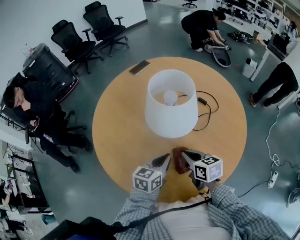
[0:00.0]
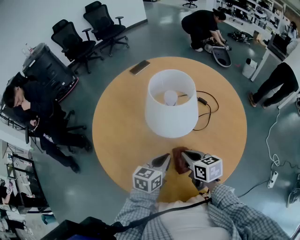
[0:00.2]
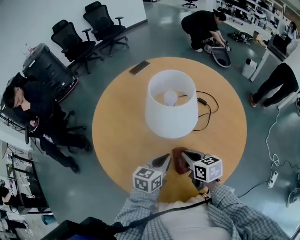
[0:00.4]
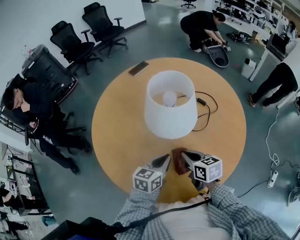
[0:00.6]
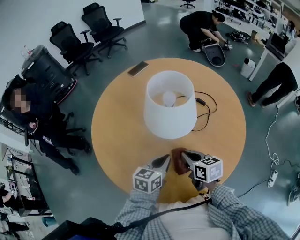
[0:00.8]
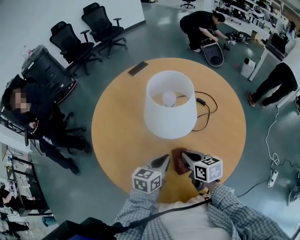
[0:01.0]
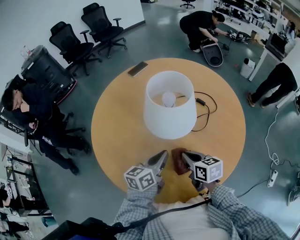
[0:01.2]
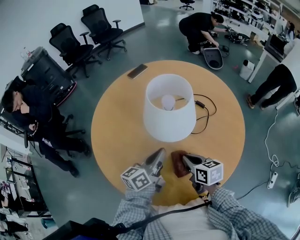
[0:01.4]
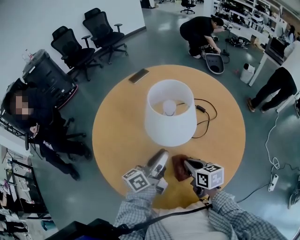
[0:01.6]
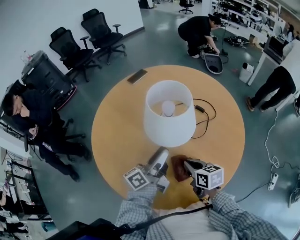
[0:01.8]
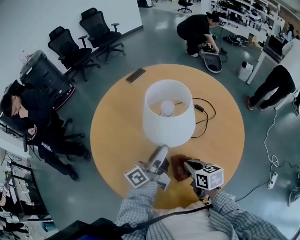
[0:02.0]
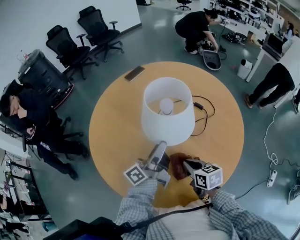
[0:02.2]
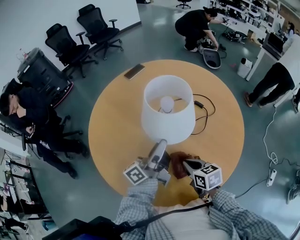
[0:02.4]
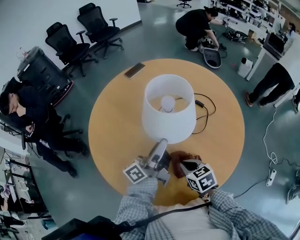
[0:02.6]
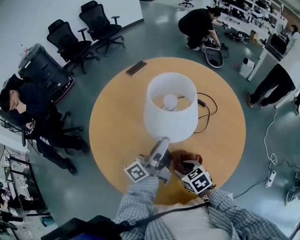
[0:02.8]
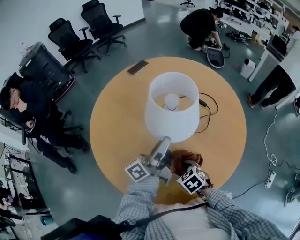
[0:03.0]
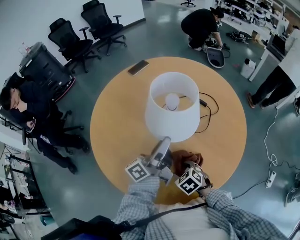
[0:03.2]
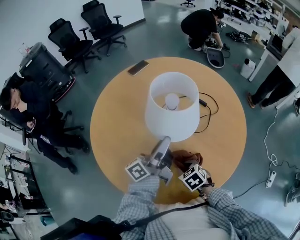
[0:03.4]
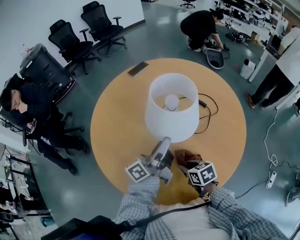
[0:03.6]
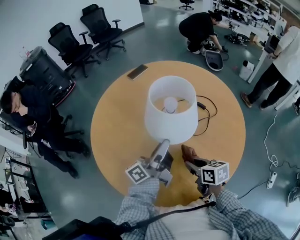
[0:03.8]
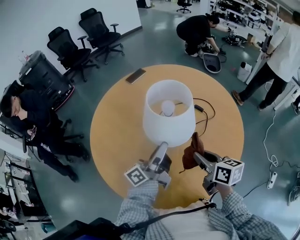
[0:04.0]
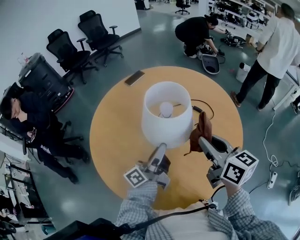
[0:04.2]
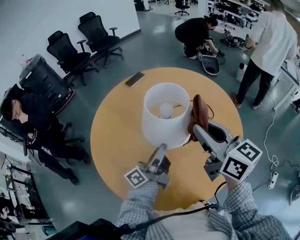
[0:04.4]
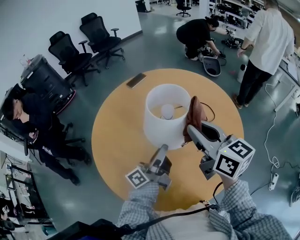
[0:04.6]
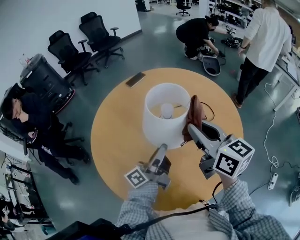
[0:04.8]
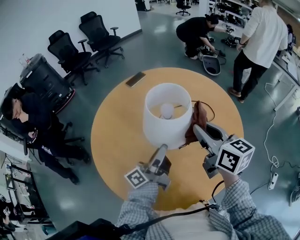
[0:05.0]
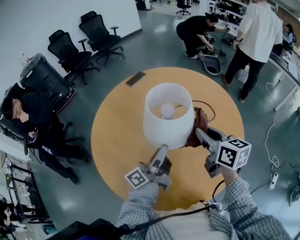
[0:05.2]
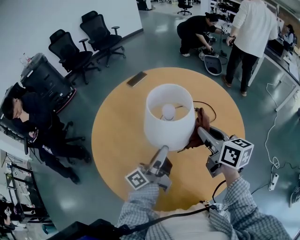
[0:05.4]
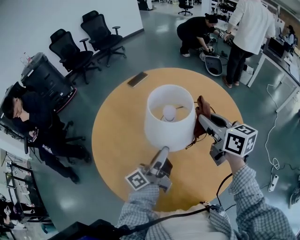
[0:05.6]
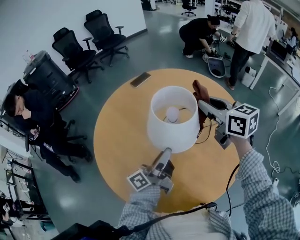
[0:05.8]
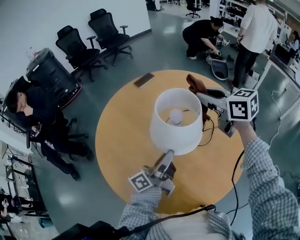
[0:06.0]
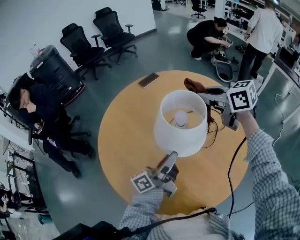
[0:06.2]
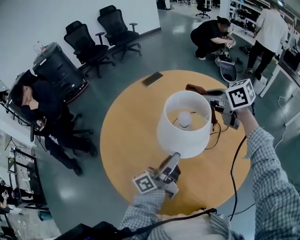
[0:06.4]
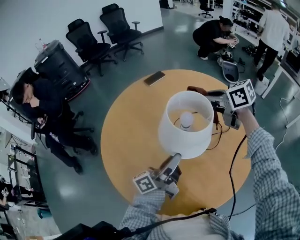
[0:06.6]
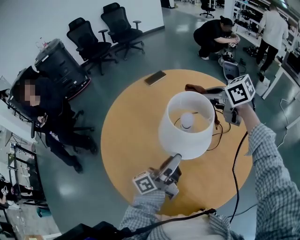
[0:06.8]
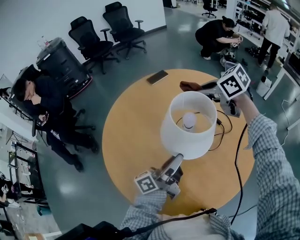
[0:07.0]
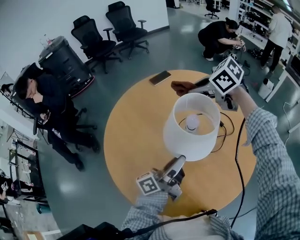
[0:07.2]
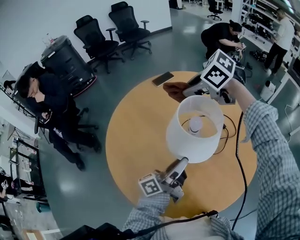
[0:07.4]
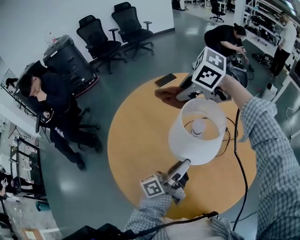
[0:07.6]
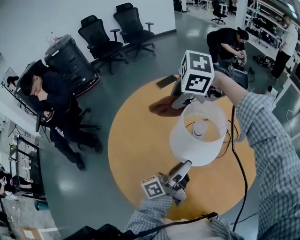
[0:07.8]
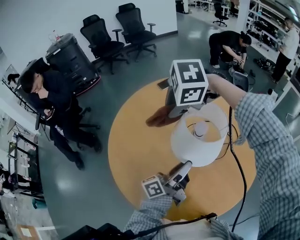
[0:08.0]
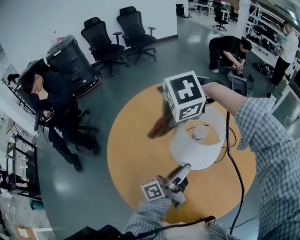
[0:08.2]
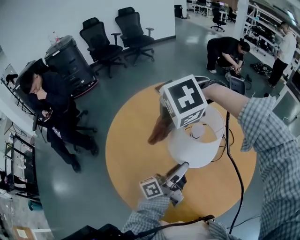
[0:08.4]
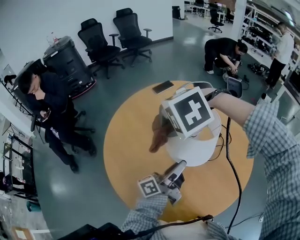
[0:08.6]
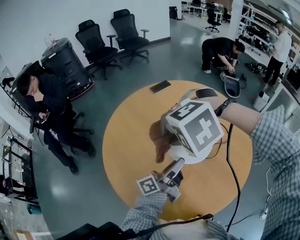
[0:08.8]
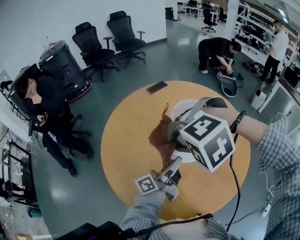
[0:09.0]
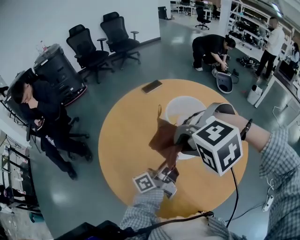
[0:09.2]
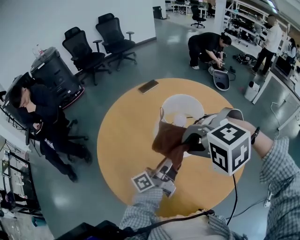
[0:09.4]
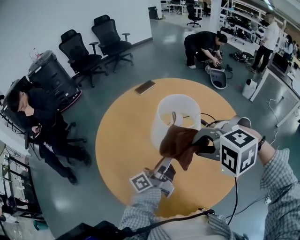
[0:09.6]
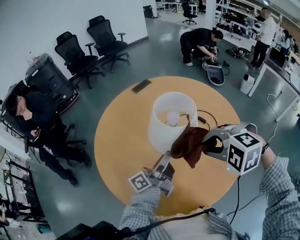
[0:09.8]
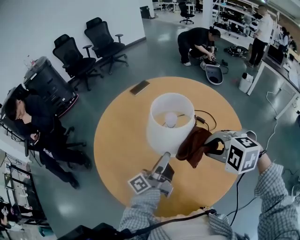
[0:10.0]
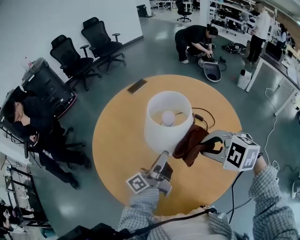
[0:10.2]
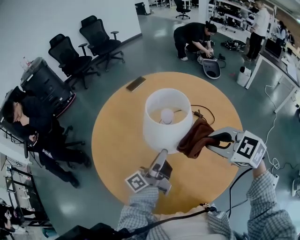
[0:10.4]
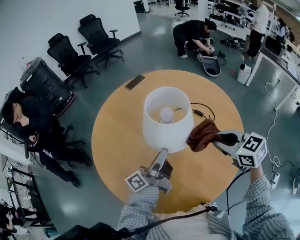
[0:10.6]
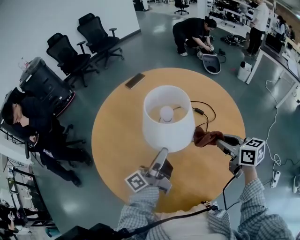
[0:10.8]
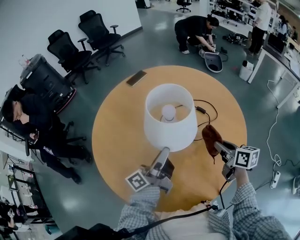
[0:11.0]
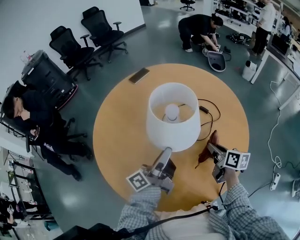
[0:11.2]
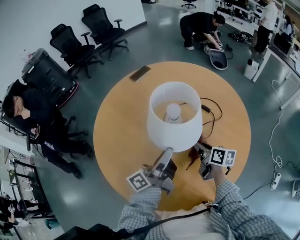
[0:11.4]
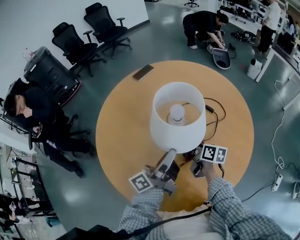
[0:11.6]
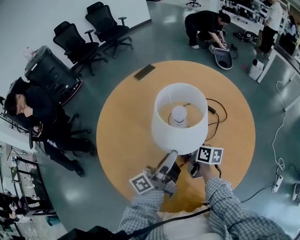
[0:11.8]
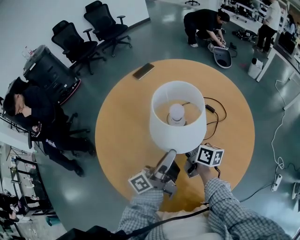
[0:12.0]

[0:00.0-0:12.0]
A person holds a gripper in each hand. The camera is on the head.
0:00.0 to 0:01.6: The left gripper is displaced upward by approximately 10 cm, tilts its fingers roughly 30 degrees upward, and opens up.
0:01.6 to 0:03.0: The right gripper travels downward by roughly 5 cm, swivels some 40 degrees, and opens. The left gripper changes its angle by approximately 20 degrees, and opens, then closes once more.
0:03.0 to 0:04.4: The right gripper travels upward by some 35 cm, points its fingers roughly 60 degrees further upward, and closes.
0:04.4 to 0:06.0: The right gripper shifts about 15 cm forward, and turns by roughly 20 degrees.
0:06.0 to 0:07.6: The right gripper shifts by about 15 cm, and tilts its fingers roughly 30 degrees downward.
0:07.6 to 0:09.0: The right gripper changes place by roughly 20 cm, and twists about 60 degrees counterclockwise, seen from behind.
0:09.0 to 0:10.4: The right gripper is displaced to the right by about 20 cm, and twists about 70 degrees clockwise, seen from behind.
0:10.4 to 0:12.0: The right gripper moves downward, to the left and forward, roughly 20 cm, and rotates around the line of its fingers by some 70 degrees, clockwise from behind.

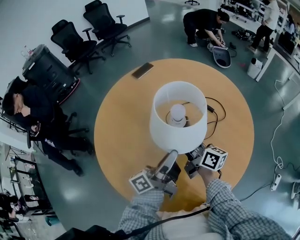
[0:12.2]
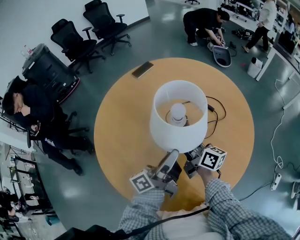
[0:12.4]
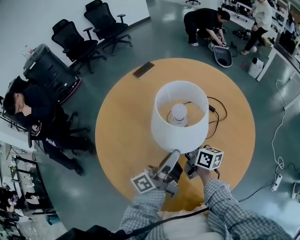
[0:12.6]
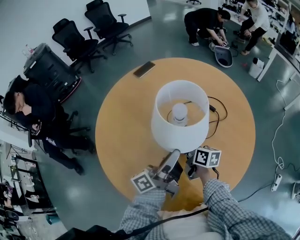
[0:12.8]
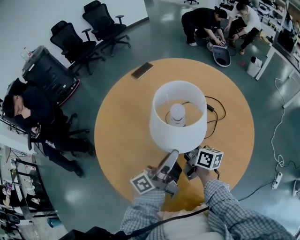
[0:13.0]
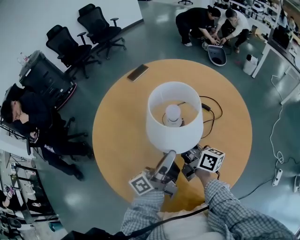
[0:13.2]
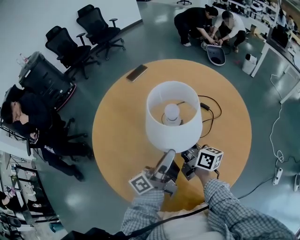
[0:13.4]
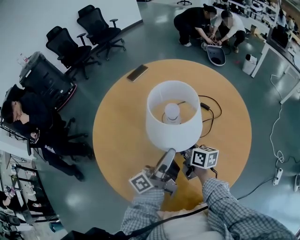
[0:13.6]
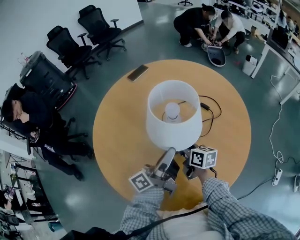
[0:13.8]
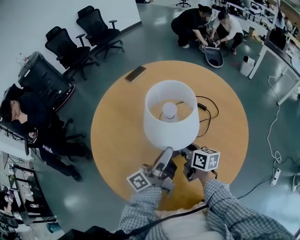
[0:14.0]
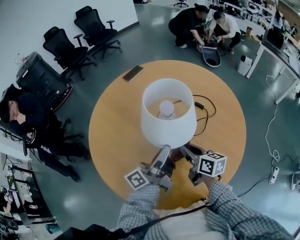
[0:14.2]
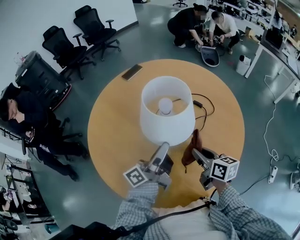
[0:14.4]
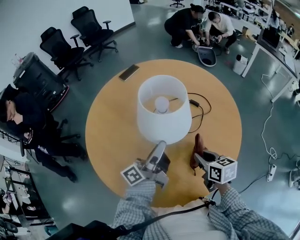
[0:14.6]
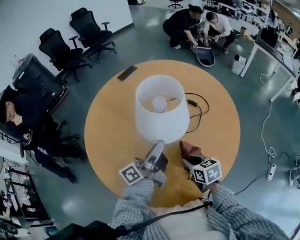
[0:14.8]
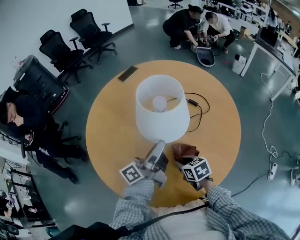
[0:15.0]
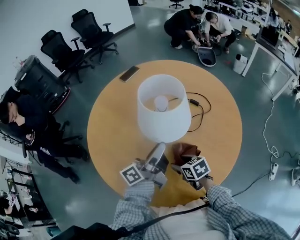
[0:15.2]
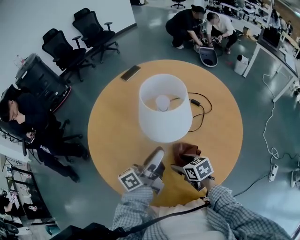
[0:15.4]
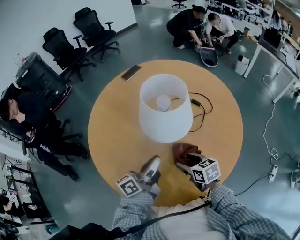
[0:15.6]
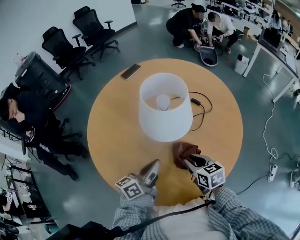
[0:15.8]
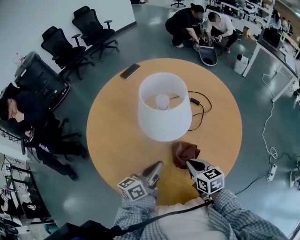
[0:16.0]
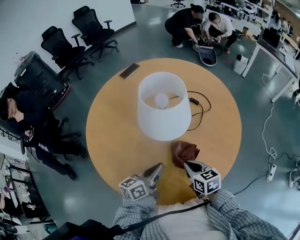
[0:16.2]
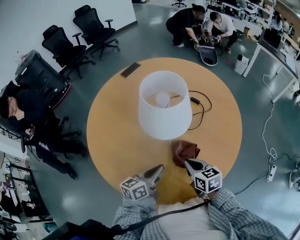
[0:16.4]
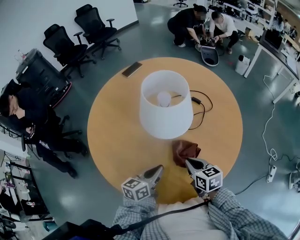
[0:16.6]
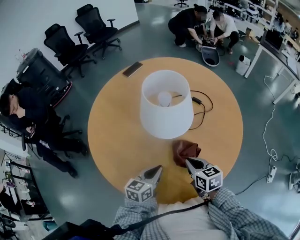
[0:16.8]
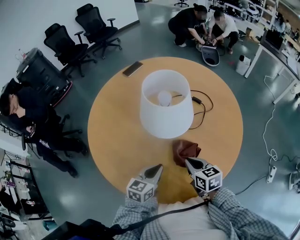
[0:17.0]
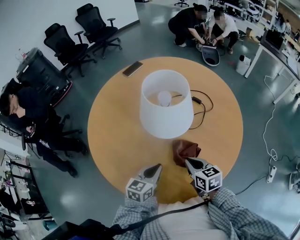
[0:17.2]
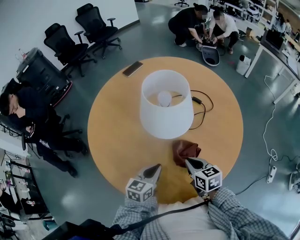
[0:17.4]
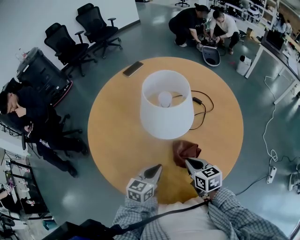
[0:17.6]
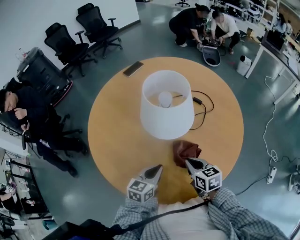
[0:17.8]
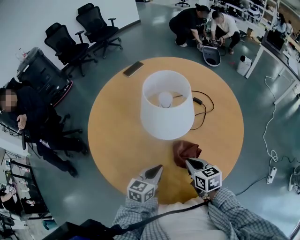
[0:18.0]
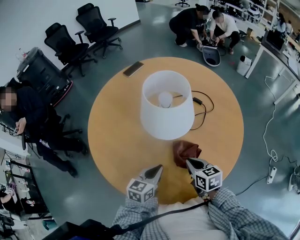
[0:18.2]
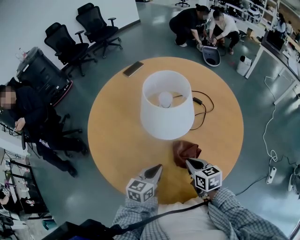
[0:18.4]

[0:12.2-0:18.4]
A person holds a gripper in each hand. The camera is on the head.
0:12.2 to 0:13.8: The right gripper swings up and down, about 10 cm each way, with 2 reversals, and rotates about 20 degrees.
0:13.8 to 0:15.4: The right gripper shifts about 10 cm backward, changes its angle by roughly 30 degrees, and opens.
0:15.4 to 0:16.8: The right gripper moves roughly 5 cm, and closes up. The left gripper is displaced downward and backward by approximately 15 cm, points its fingers some 40 degrees further downward, and closes its fingers.
0:16.8 to 0:18.4: There are only small adjustments of the grippers.

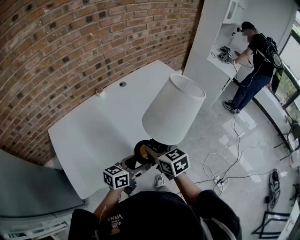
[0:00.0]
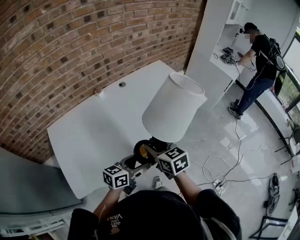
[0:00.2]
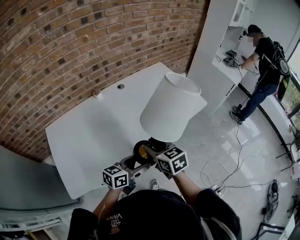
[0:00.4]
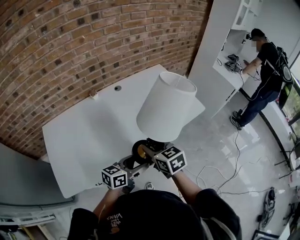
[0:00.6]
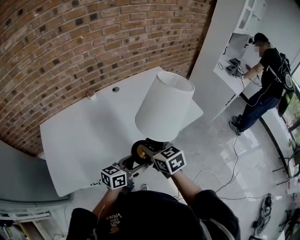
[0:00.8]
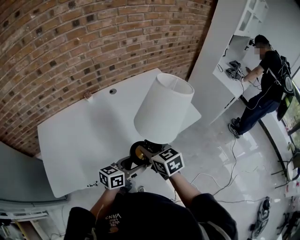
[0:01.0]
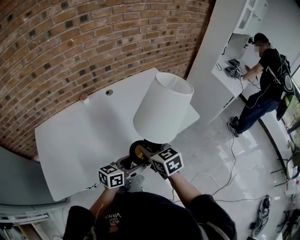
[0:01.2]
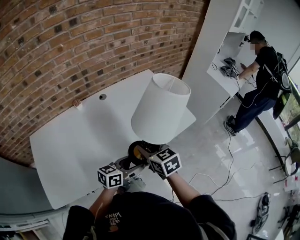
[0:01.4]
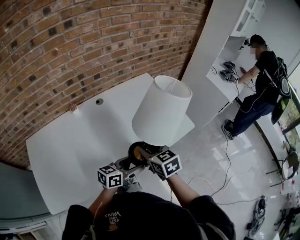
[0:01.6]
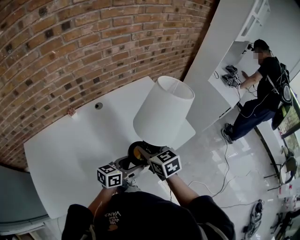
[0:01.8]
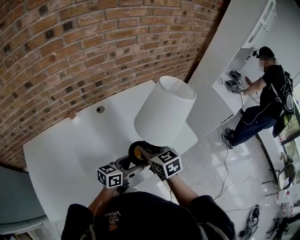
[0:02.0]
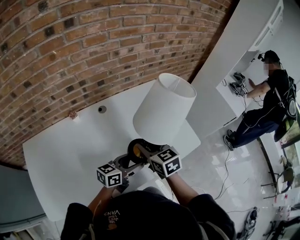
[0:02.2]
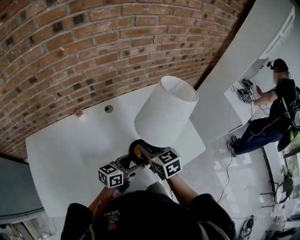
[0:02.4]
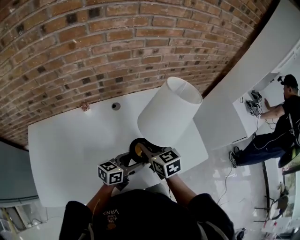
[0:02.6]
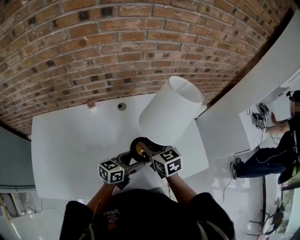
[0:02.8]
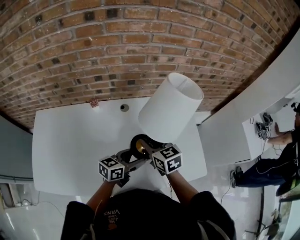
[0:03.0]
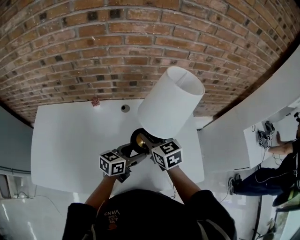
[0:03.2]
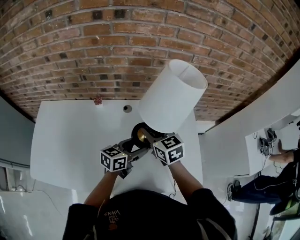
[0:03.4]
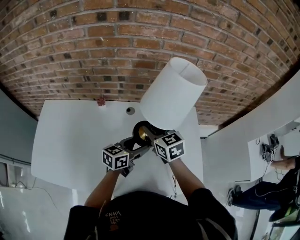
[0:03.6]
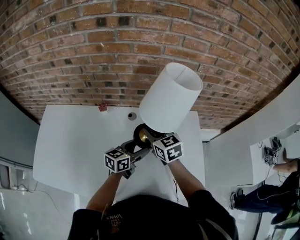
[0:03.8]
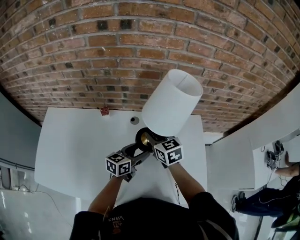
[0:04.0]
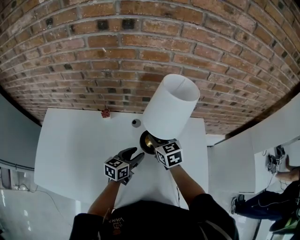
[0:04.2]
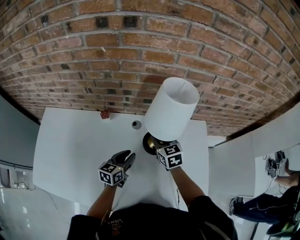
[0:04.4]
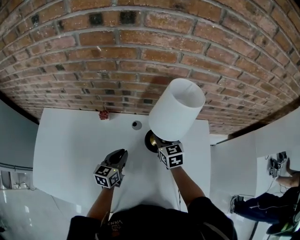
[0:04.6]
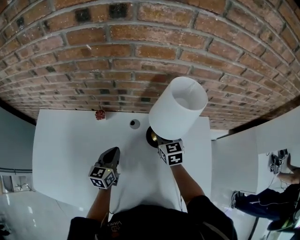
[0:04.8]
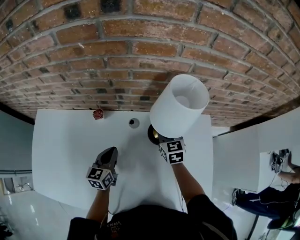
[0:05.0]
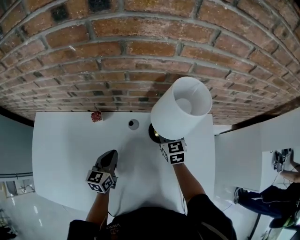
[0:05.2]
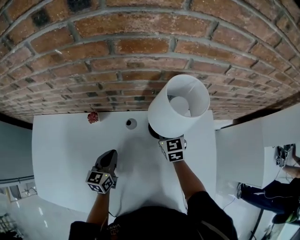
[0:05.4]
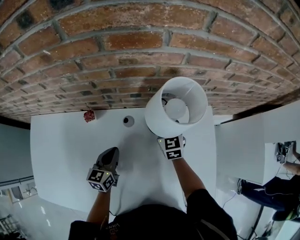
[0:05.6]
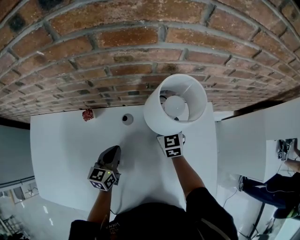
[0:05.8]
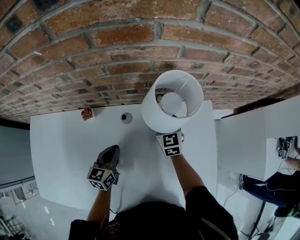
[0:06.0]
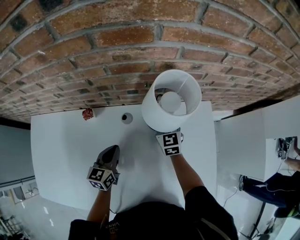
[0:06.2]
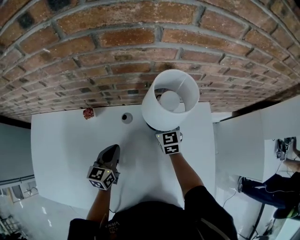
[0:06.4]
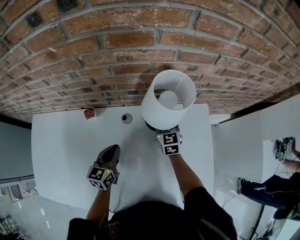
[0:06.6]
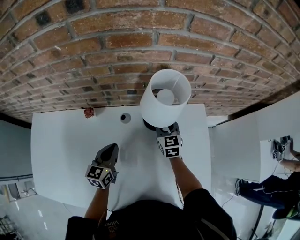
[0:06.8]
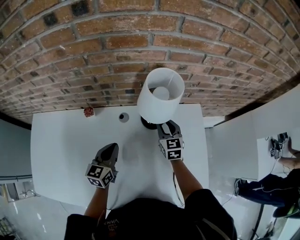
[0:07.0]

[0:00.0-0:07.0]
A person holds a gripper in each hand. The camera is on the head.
0:00.0 to 0:01.4: The grippers both shift forward and to the right by roughly 25 cm.
0:01.4 to 0:02.8: The two grippers go some 20 cm forward.
0:02.8 to 0:04.2: Both grippers travel together forward, roughly 15 cm. The left gripper turns by about 30 degrees.
0:04.2 to 0:05.6: The left gripper shifts about 10 cm to the left and forward, and closes. The right gripper shifts roughly 15 cm forward, downward and to the right.
0:05.6 to 0:07.0: The left gripper moves upward, roughly 5 cm; the right gripper travels to the right and backward by some 5 cm.
